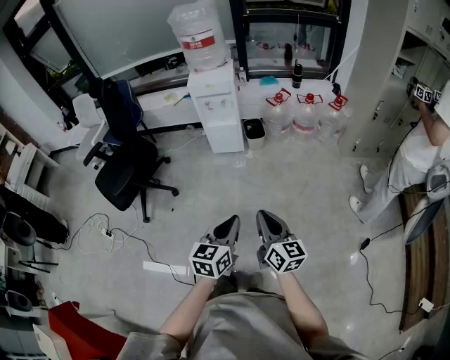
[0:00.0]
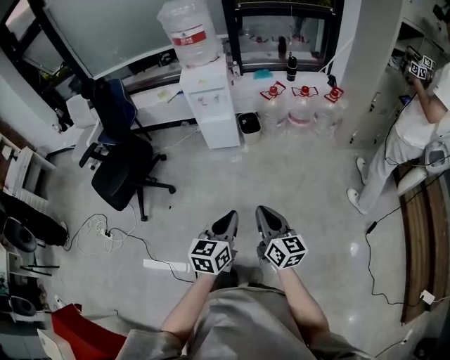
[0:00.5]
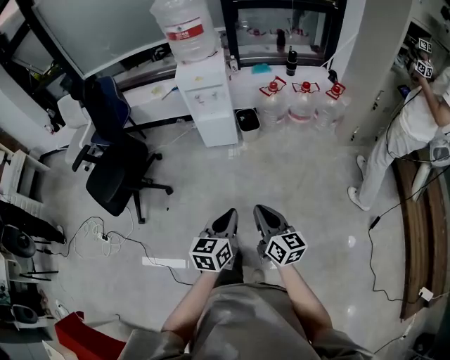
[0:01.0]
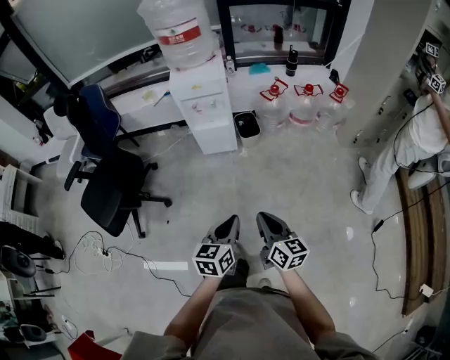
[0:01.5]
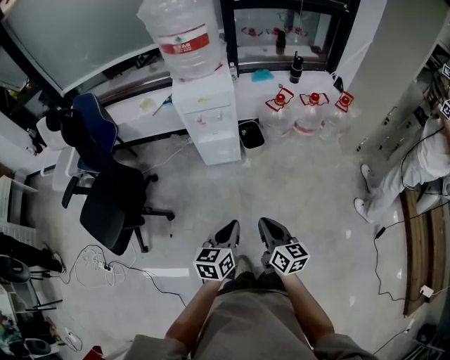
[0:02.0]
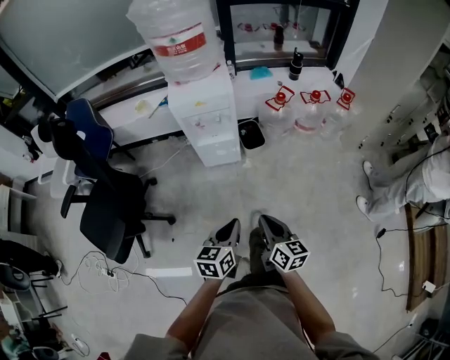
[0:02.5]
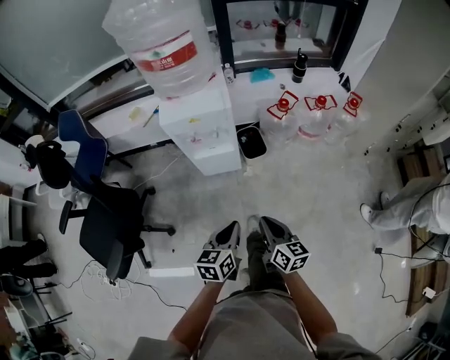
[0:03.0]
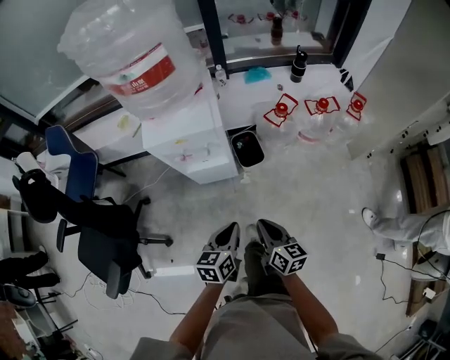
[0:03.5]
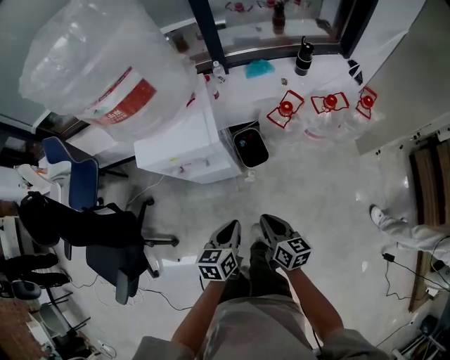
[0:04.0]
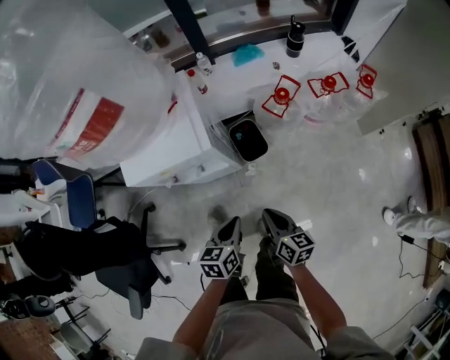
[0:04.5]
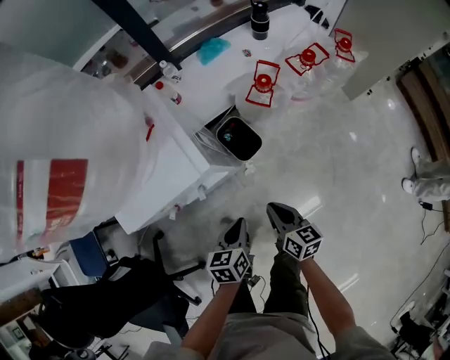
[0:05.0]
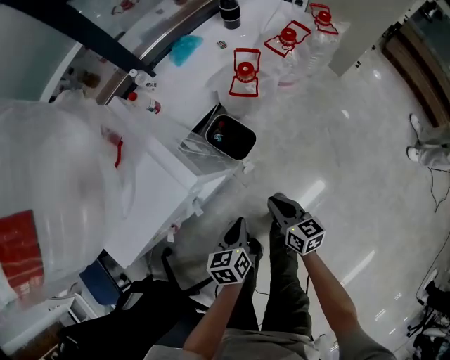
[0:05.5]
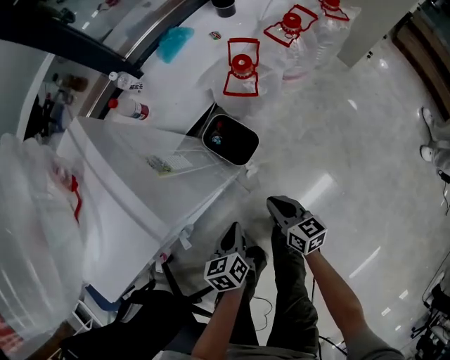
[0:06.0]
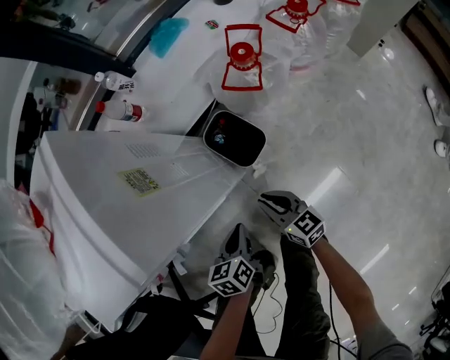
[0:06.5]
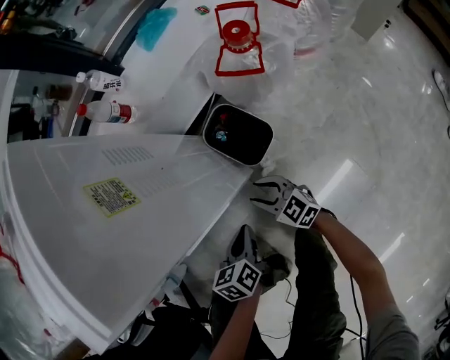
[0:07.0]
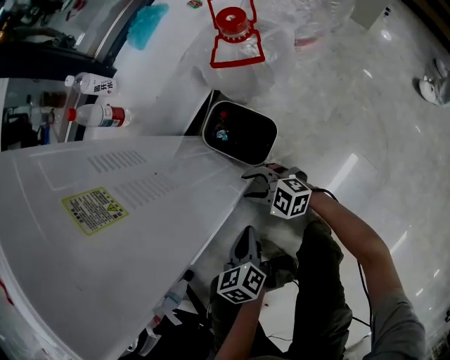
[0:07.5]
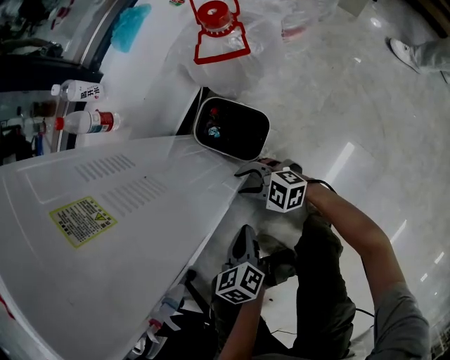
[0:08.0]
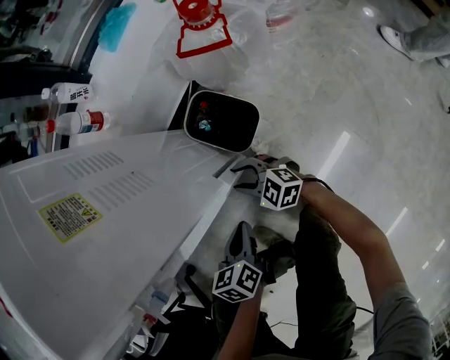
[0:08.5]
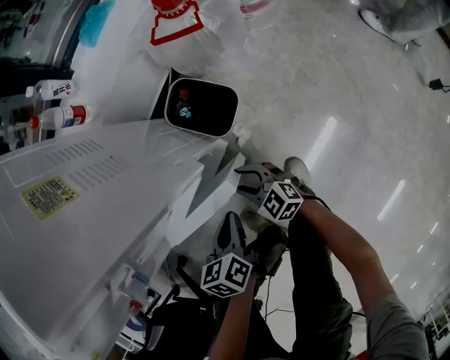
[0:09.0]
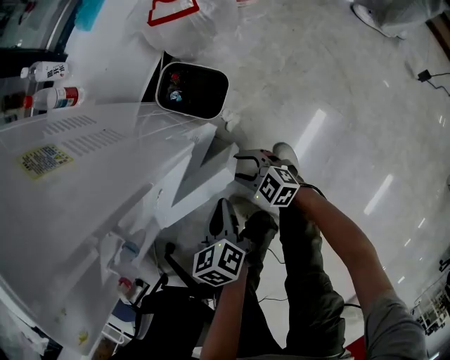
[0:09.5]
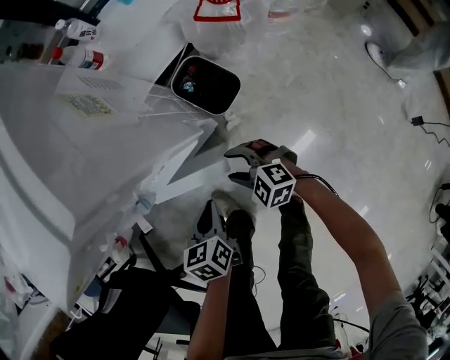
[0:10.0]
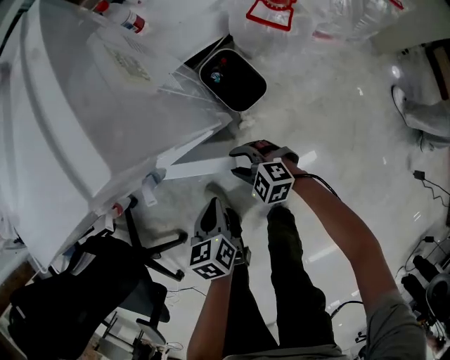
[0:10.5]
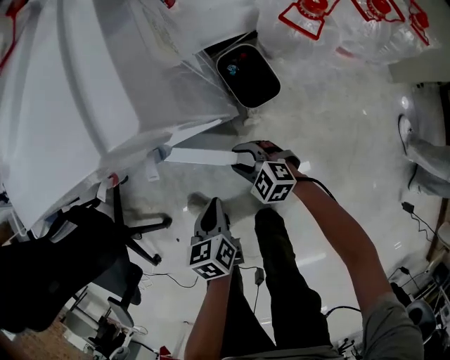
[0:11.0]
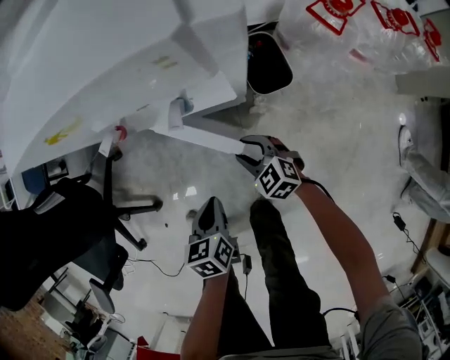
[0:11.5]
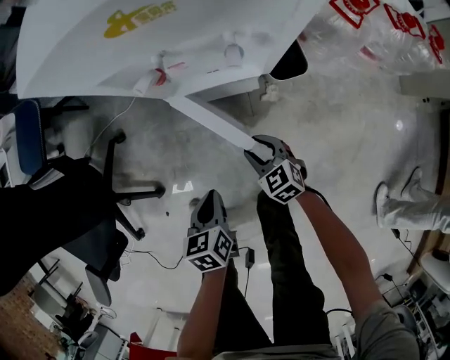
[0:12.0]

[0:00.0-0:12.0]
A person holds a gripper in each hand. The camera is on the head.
0:00.0 to 0:02.0: The left gripper shifts approximately 30 cm forward and to the left. The right gripper is displaced forward by approximately 25 cm.
0:02.0 to 0:04.0: The two grippers go about 35 cm forward.
0:04.0 to 0:06.0: The two grippers go roughly 25 cm downward. The right gripper turns by approximately 20 degrees.
0:06.0 to 0:08.0: The left gripper is displaced downward by approximately 15 cm, while the right gripper travels downward, to the left and forward by about 25 cm, rolls counterclockwise, seen from behind, by about 50 degrees, and opens up.
0:08.0 to 0:10.0: The left gripper moves upward and backward, some 10 cm, while the right gripper travels backward and upward by approximately 15 cm.
0:10.0 to 0:12.0: The right gripper heads to the left and backward, covering some 10 cm. The left gripper is displaced to the left and backward by roughly 15 cm, and swivels roughly 30 degrees.

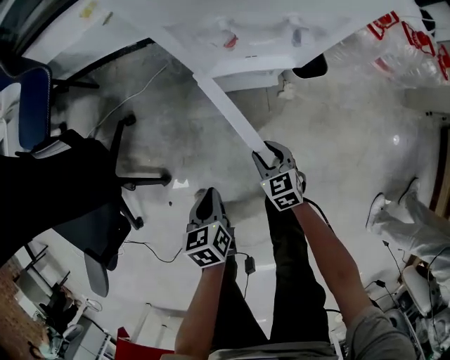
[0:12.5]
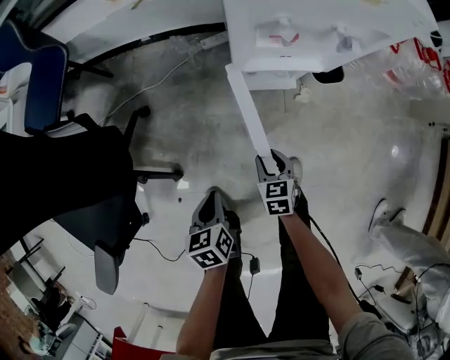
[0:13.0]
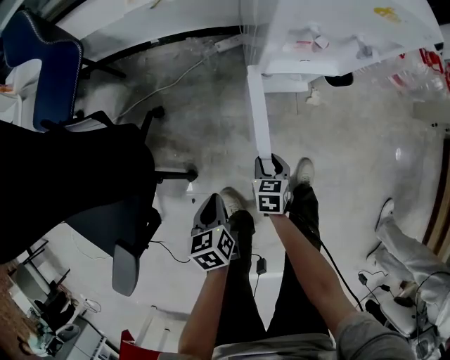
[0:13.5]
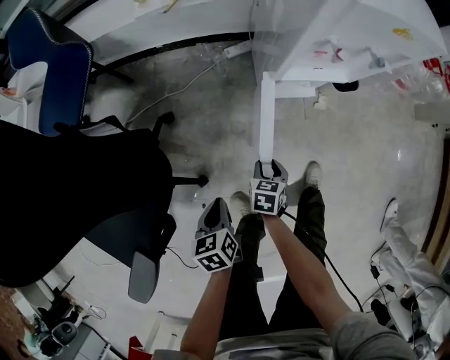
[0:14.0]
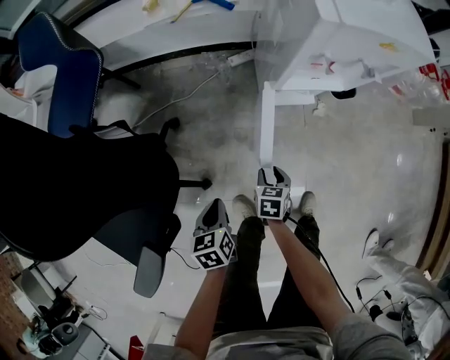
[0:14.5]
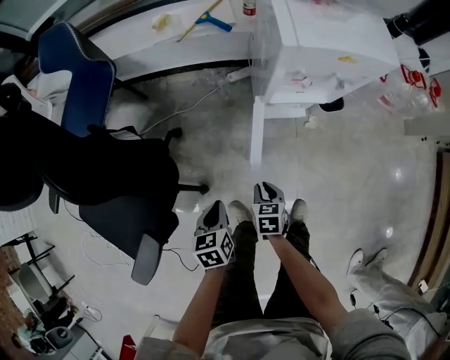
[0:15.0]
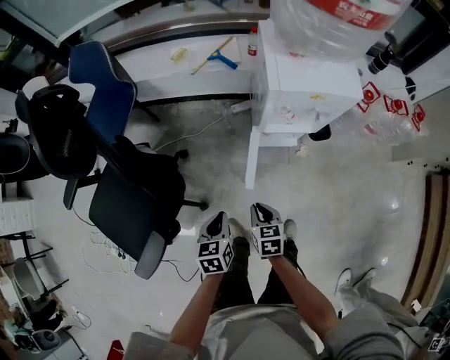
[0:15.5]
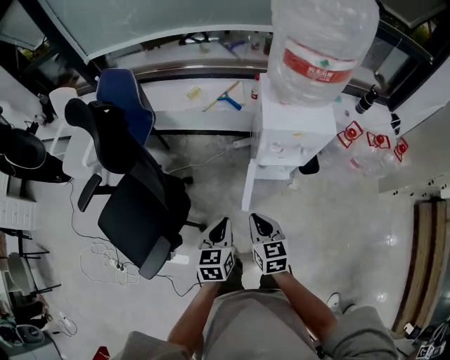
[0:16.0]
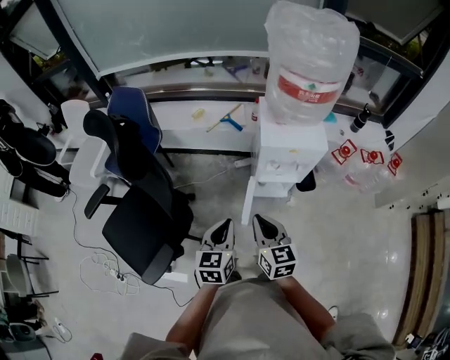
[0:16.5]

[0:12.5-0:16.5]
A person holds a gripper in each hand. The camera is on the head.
0:12.5 to 0:14.5: Both grippers move to the left, about 20 cm. The right gripper swivels about 30 degrees.
0:14.5 to 0:16.5: Both grippers move upward, about 50 cm. The left gripper rotates approximately 30 degrees. Meanwhile the right gripper points its fingers about 40 degrees further upward, and closes.

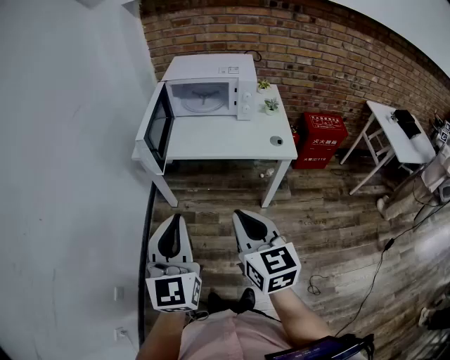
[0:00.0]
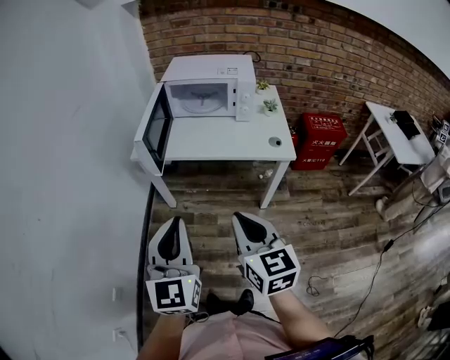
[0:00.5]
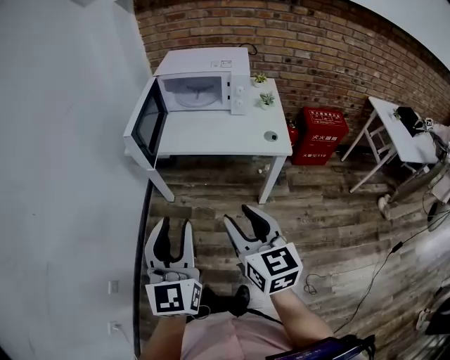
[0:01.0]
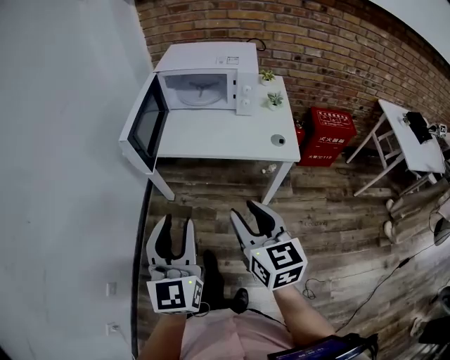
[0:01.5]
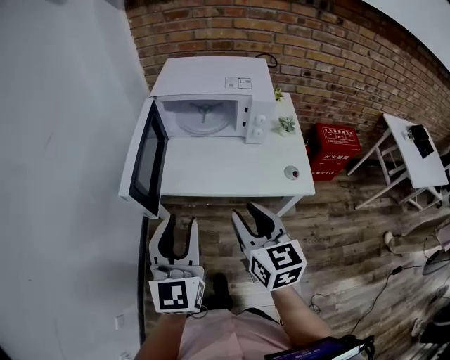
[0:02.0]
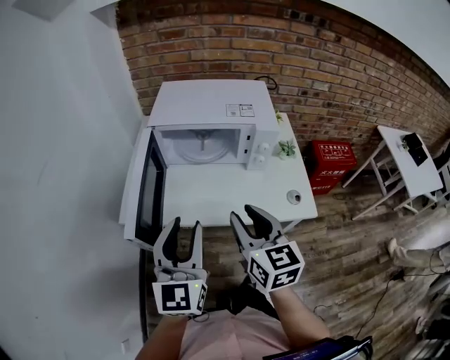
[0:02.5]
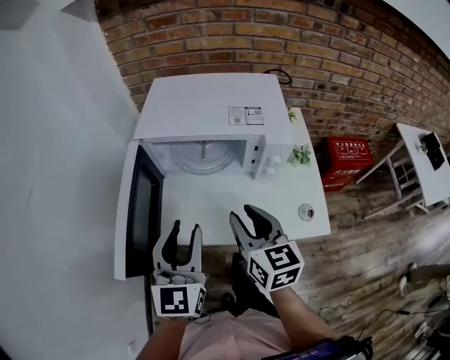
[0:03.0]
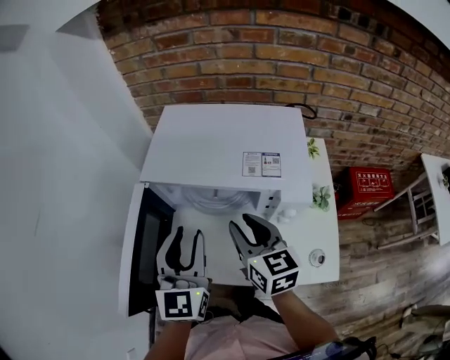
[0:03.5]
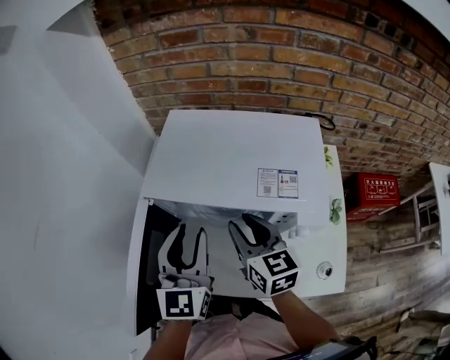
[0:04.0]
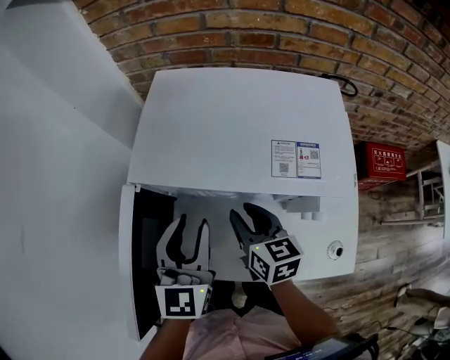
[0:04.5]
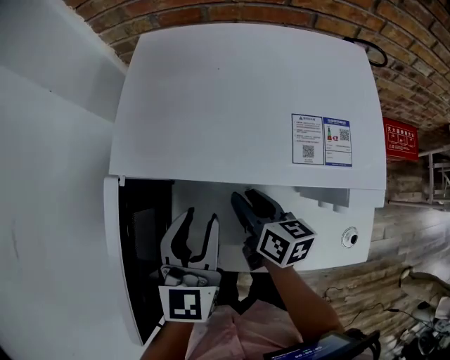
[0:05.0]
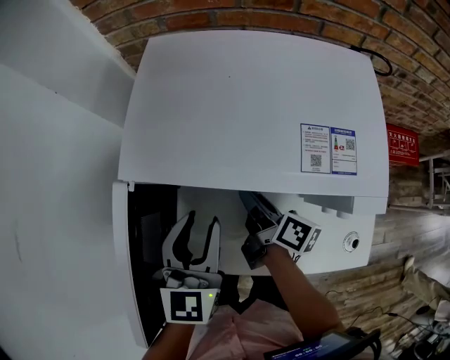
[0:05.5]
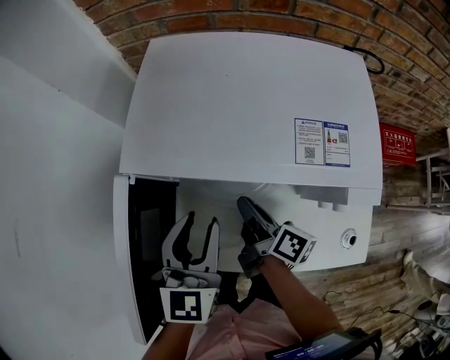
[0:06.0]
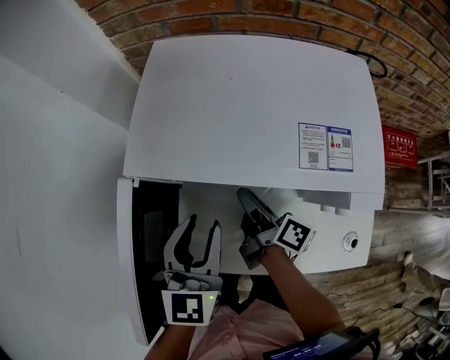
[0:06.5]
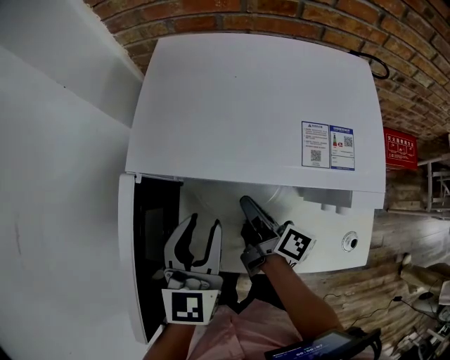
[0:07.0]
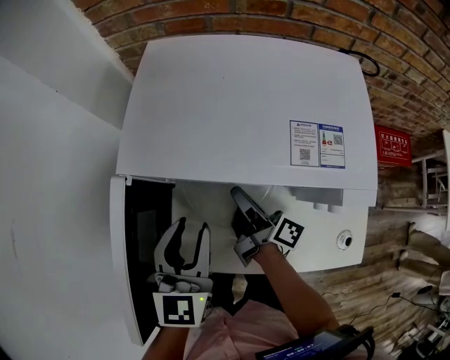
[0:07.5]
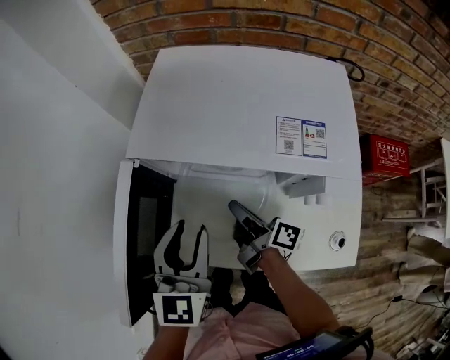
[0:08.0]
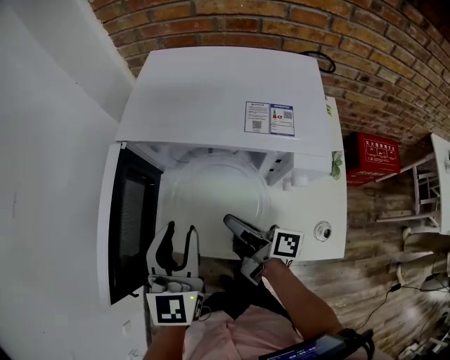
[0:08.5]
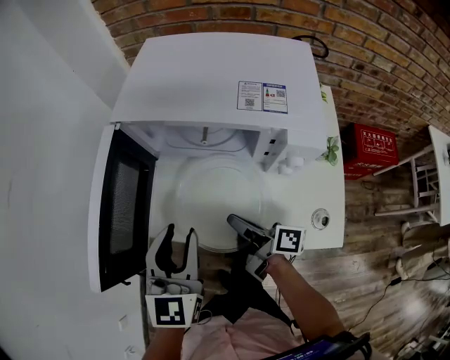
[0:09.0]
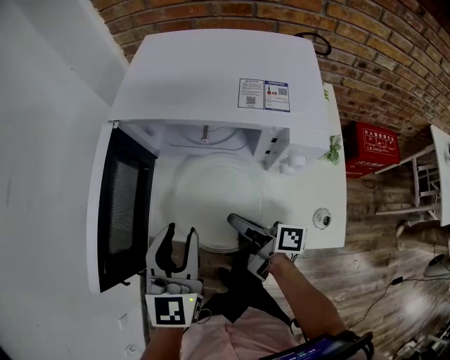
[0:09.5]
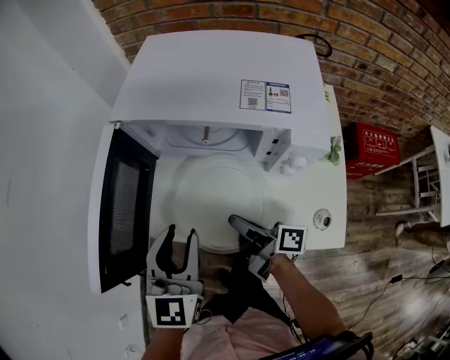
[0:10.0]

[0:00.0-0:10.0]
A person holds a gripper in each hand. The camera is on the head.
0:00.0 to 0:02.0: Both grippers travel together forward, roughly 25 cm. The right gripper opens up. Meanwhile the left gripper opens.
0:02.0 to 0:04.0: The grippers both shift forward by some 35 cm.
0:04.0 to 0:06.0: The right gripper heads downward, covering about 15 cm, and rolls clockwise, seen from behind, by approximately 60 degrees. The left gripper goes approximately 10 cm downward.
0:06.0 to 0:08.0: There are only small adjustments of the grippers.
0:08.0 to 0:10.0: Both grippers move backward, some 10 cm.

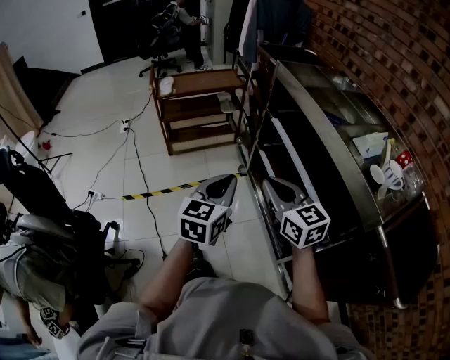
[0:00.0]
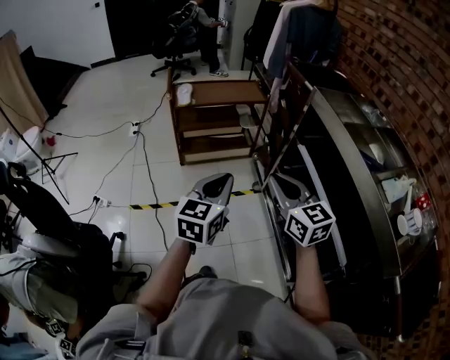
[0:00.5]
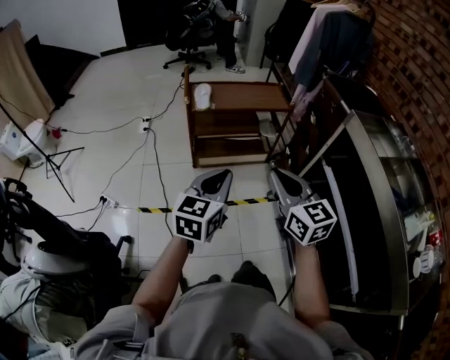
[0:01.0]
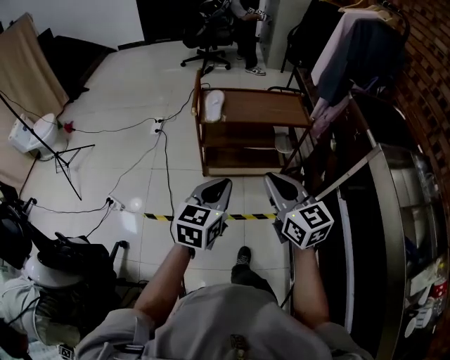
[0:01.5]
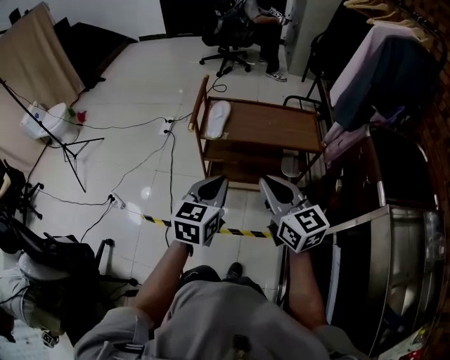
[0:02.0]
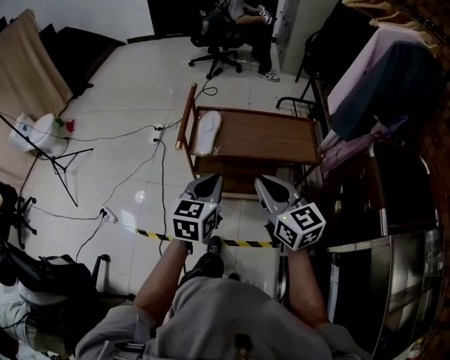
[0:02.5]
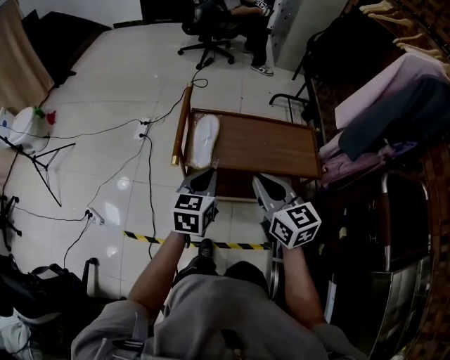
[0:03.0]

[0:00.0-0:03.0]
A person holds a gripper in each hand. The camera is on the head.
0:00.0 to 0:01.5: The two grippers travel together, forward and to the left, roughly 40 cm.
0:01.5 to 0:03.0: Both grippers move forward, about 35 cm.
